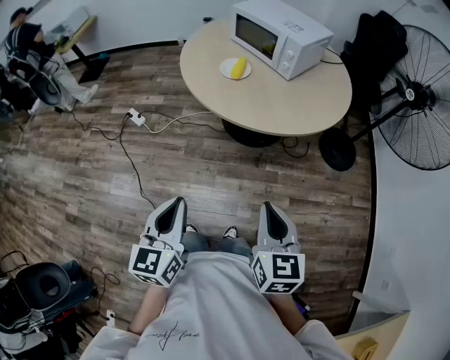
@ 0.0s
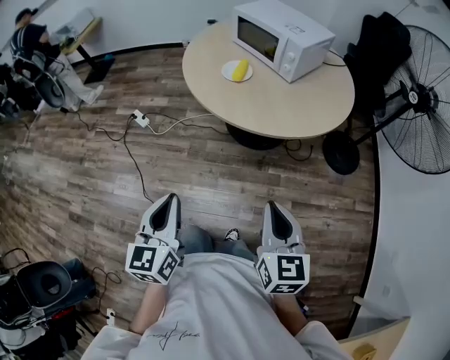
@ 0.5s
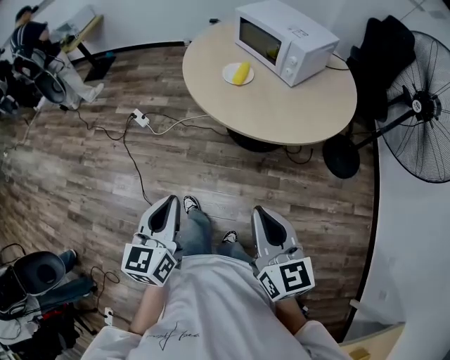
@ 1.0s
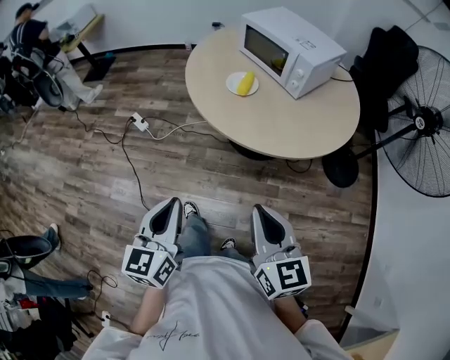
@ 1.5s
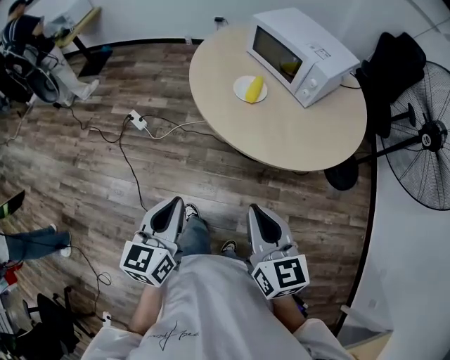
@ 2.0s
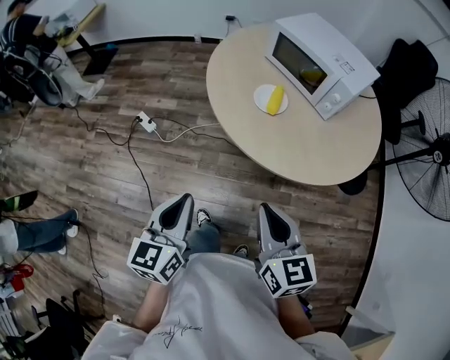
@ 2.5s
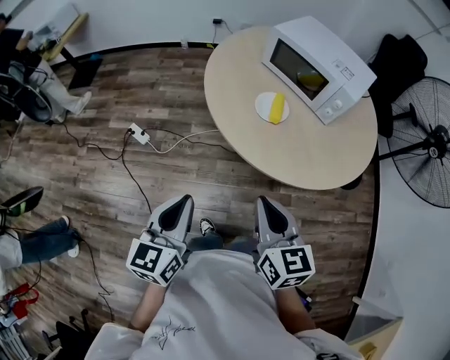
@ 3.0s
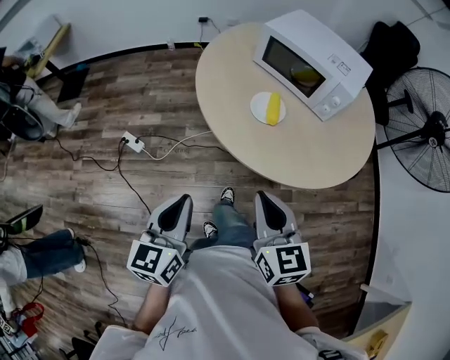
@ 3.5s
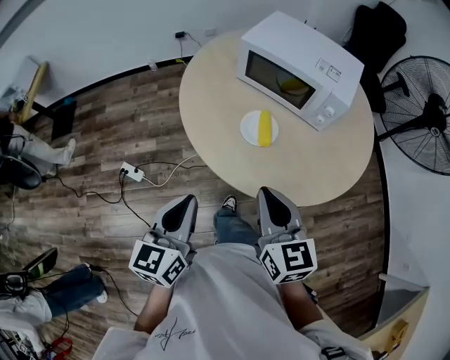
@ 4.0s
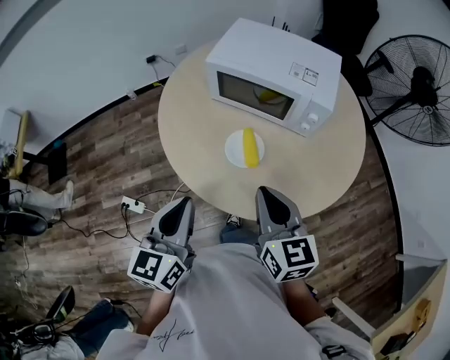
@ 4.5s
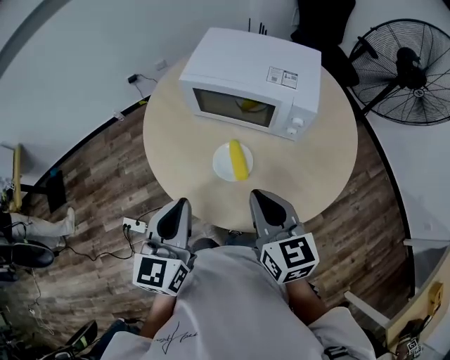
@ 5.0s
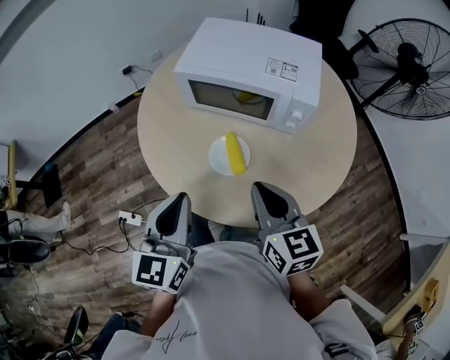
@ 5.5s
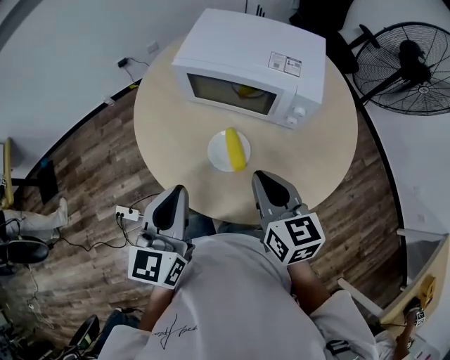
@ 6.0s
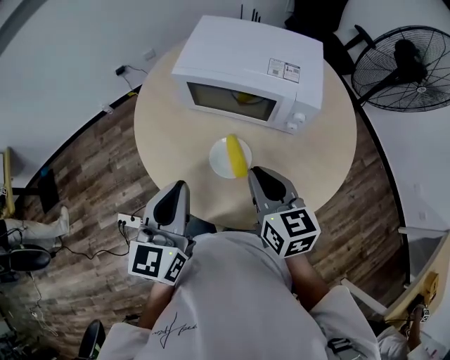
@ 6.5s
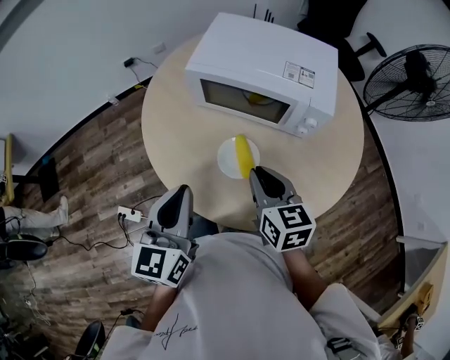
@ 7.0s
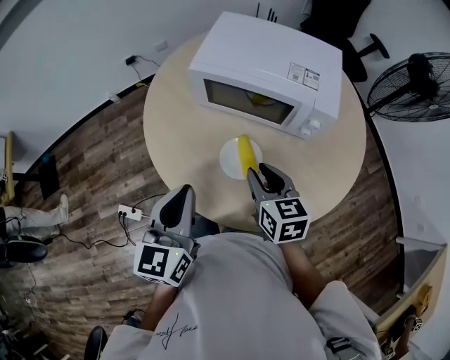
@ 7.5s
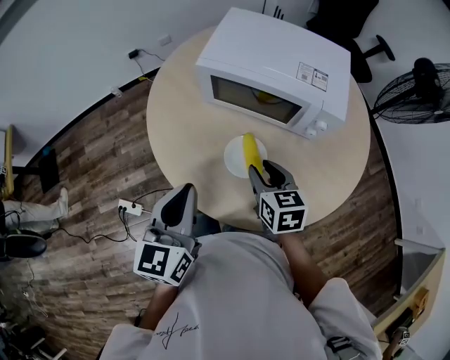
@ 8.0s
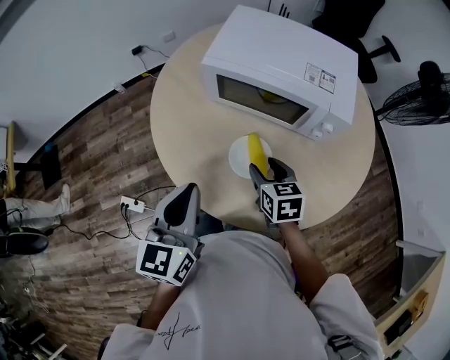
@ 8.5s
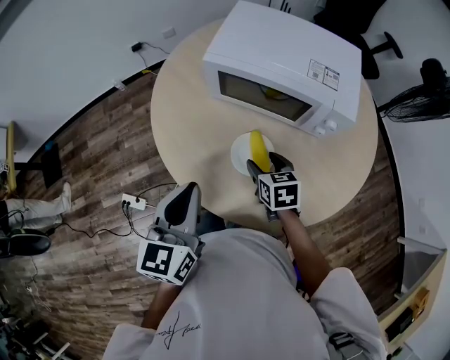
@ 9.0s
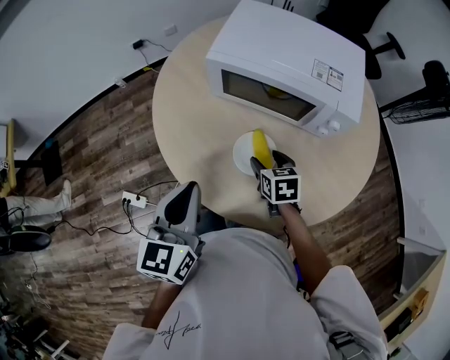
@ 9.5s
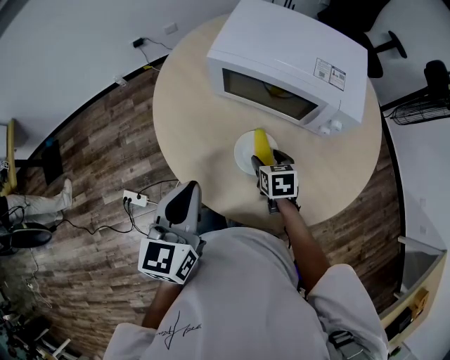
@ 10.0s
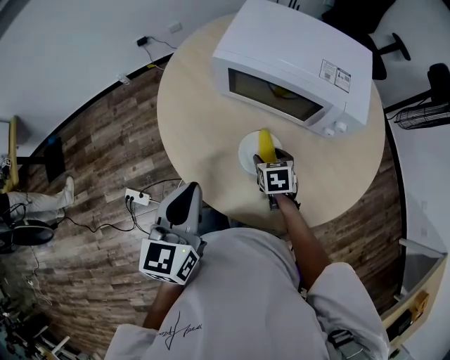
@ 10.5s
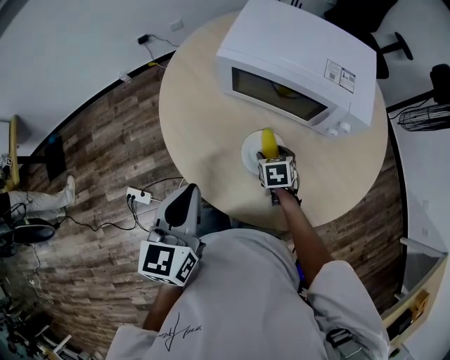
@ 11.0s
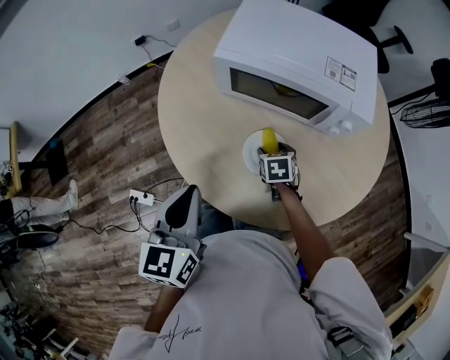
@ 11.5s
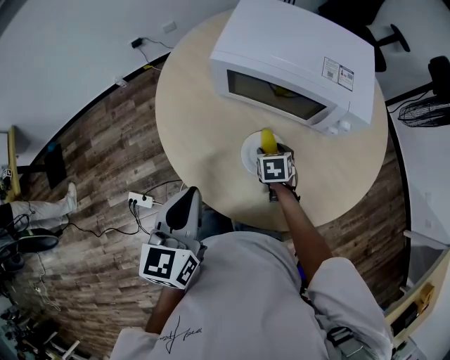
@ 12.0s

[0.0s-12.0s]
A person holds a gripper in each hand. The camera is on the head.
0.0s to 2.0s: The left gripper heads forward, covering about 15 cm. Meanwhile the right gripper shifts approximately 15 cm forward and to the left.
2.0s to 4.0s: The left gripper is displaced forward by some 30 cm, and rotates approximately 20 degrees. Meanwhile the right gripper goes about 30 cm forward and to the left, and swivels some 20 degrees.
4.0s to 6.0s: The two grippers go approximately 20 cm forward.
6.0s to 8.0s: The right gripper goes approximately 10 cm downward and forward, and opens, while the left gripper shifts by about 5 cm.
8.0s to 10.0s: The right gripper moves downward, some 10 cm, and opens up.
10.0s to 12.0s: The right gripper goes about 5 cm downward.

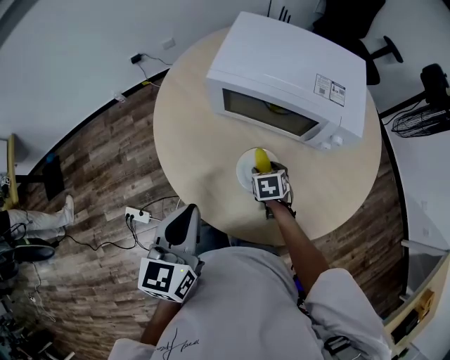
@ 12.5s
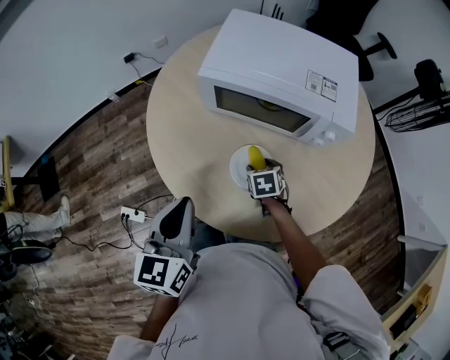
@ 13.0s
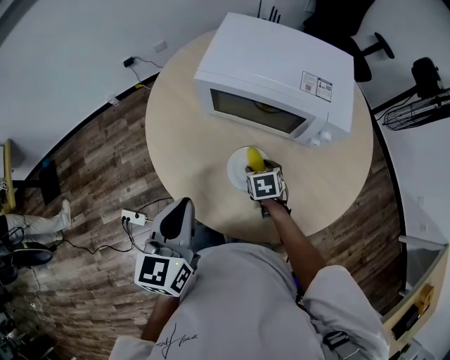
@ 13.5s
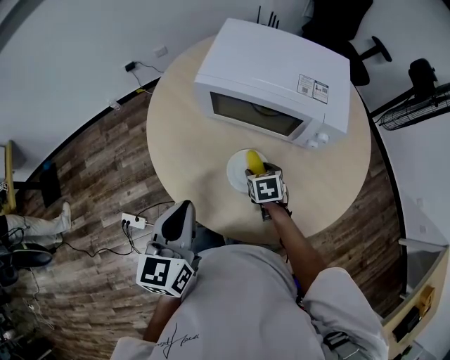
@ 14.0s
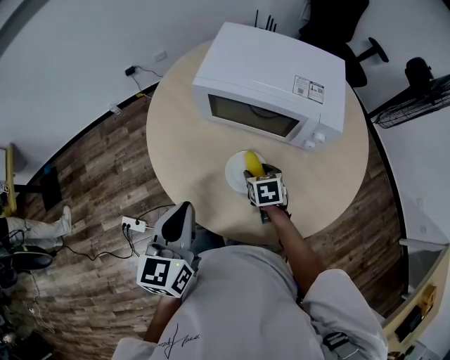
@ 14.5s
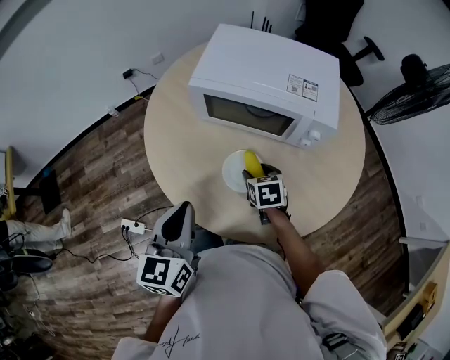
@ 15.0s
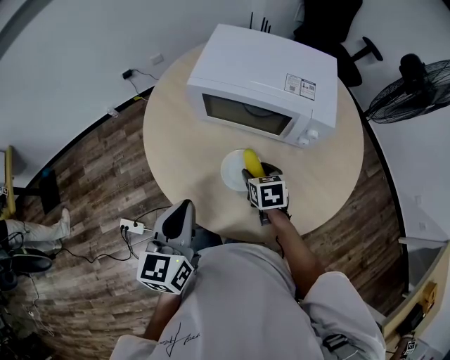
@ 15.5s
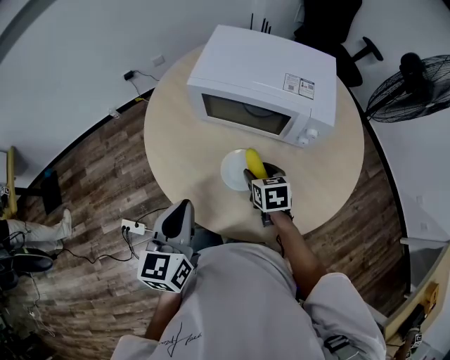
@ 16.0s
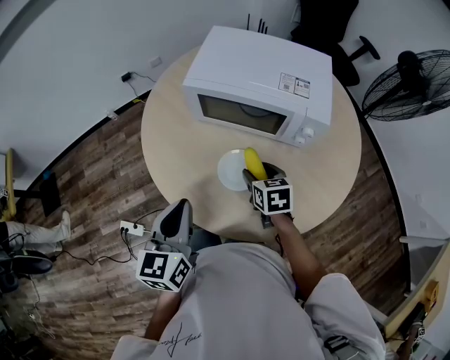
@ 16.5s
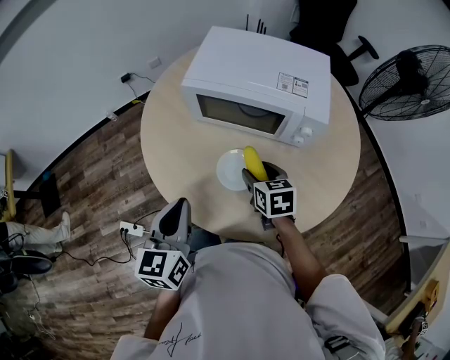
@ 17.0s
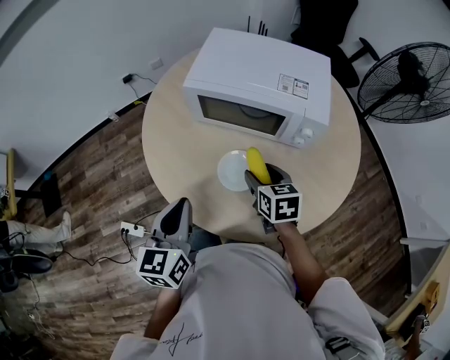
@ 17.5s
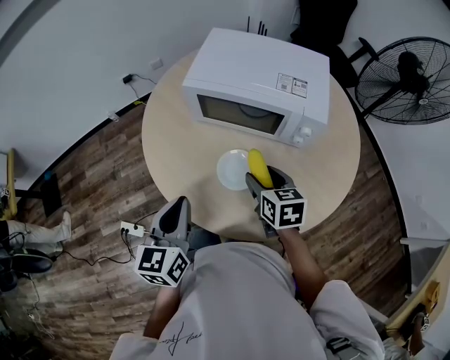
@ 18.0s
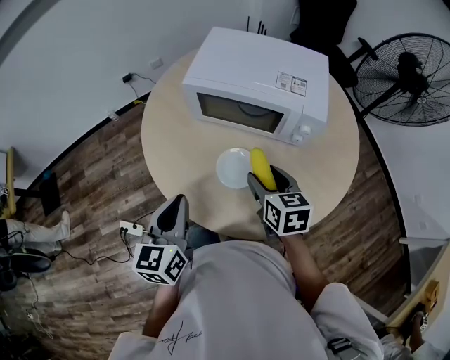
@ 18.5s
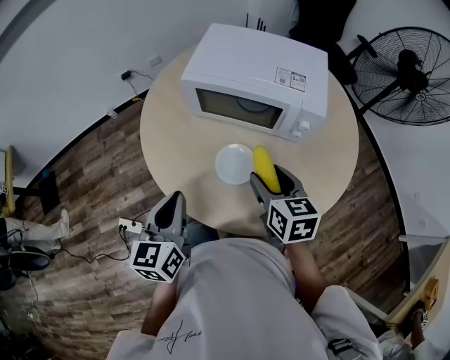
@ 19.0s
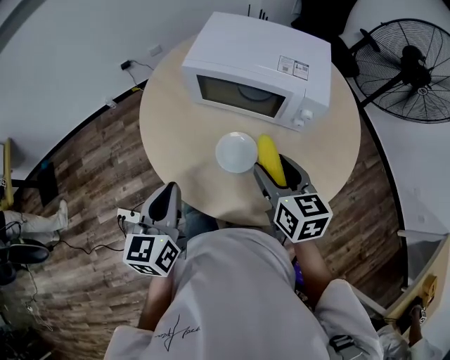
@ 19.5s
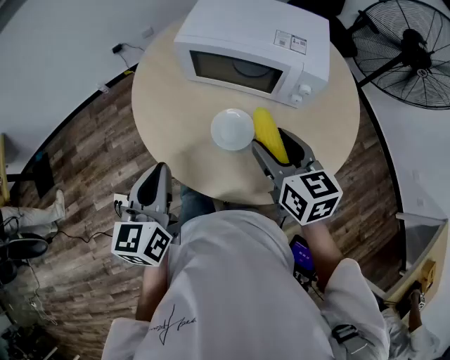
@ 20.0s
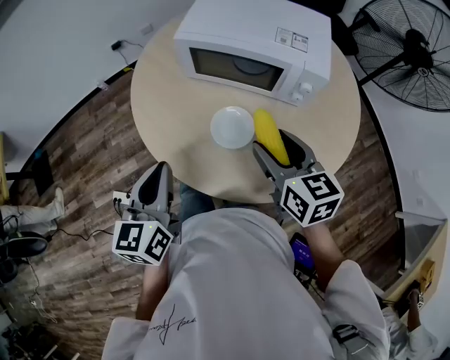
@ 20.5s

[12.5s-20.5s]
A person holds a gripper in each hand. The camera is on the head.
12.5s to 14.5s: The grippers make only small movements.
14.5s to 16.5s: The right gripper shifts approximately 5 cm upward.
16.5s to 18.5s: The right gripper shifts roughly 10 cm upward.
18.5s to 20.5s: The right gripper heads upward, covering some 5 cm.

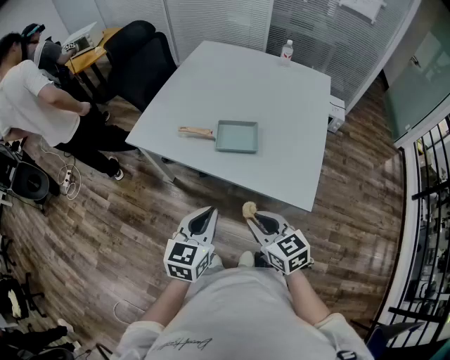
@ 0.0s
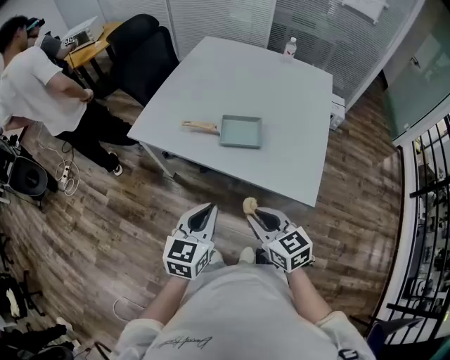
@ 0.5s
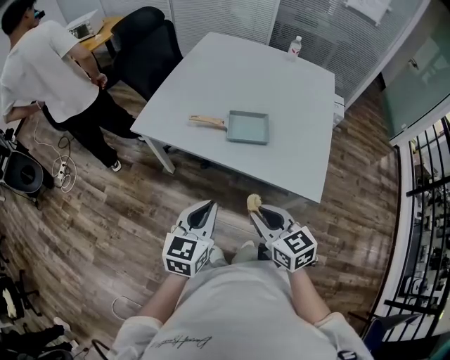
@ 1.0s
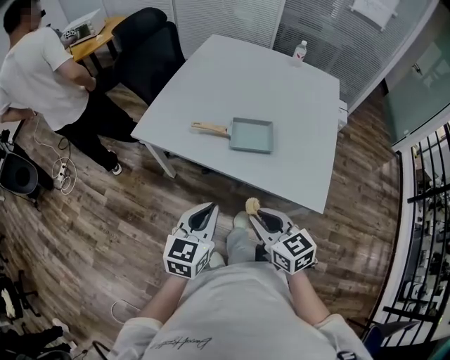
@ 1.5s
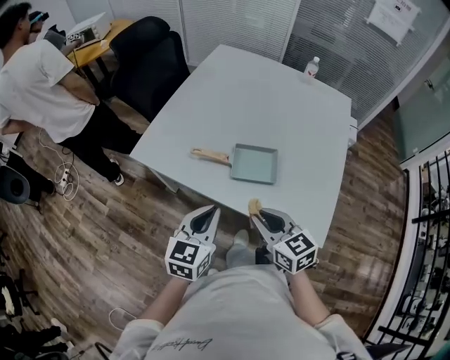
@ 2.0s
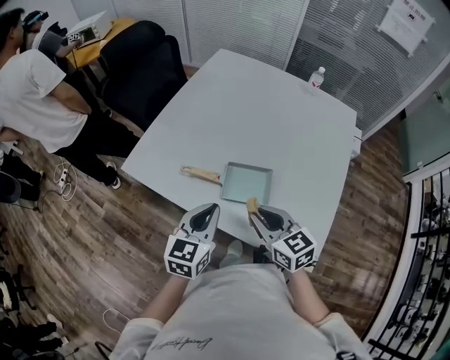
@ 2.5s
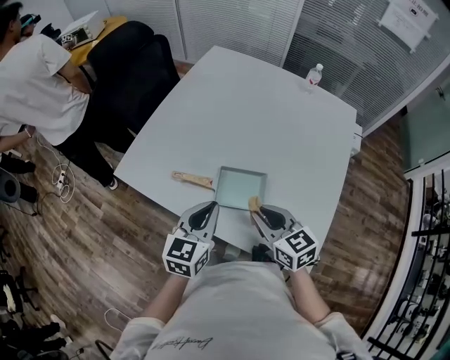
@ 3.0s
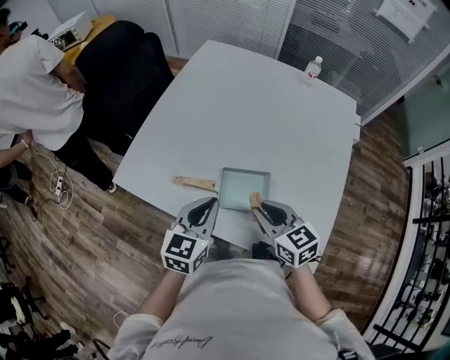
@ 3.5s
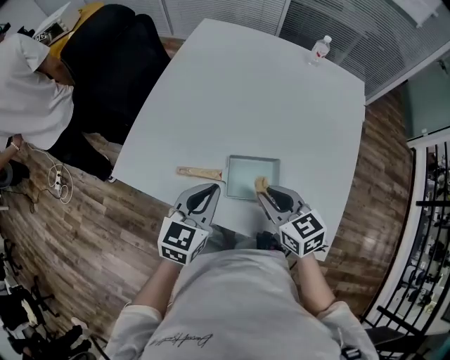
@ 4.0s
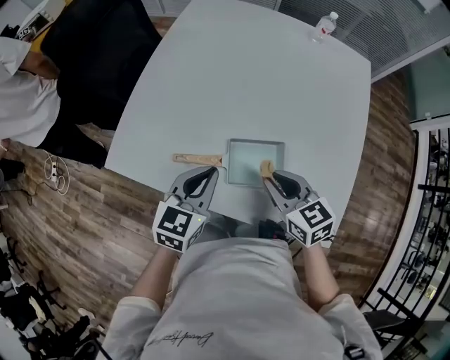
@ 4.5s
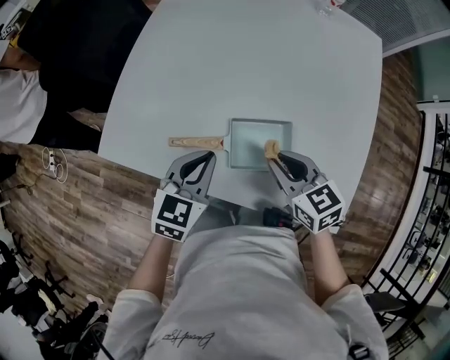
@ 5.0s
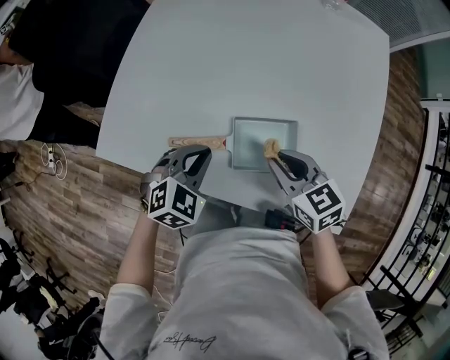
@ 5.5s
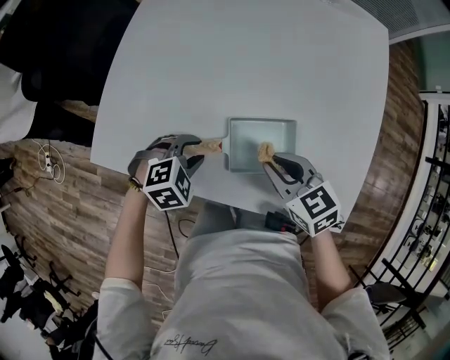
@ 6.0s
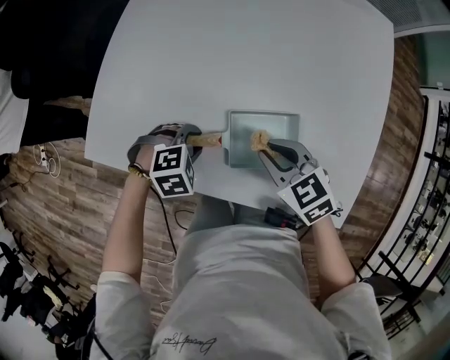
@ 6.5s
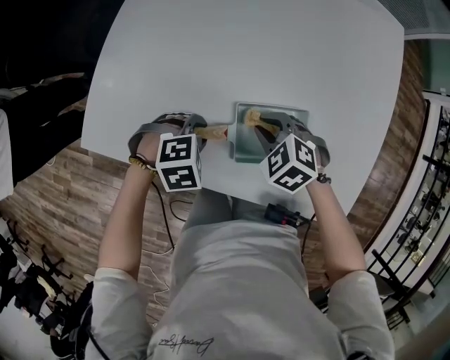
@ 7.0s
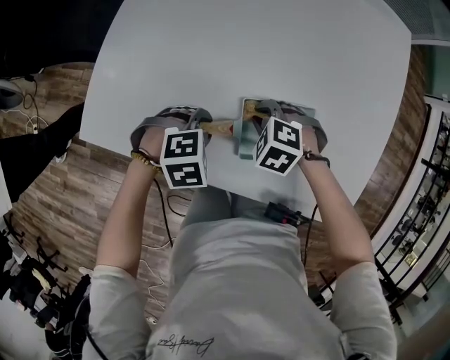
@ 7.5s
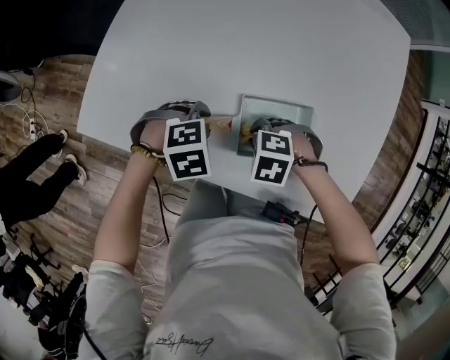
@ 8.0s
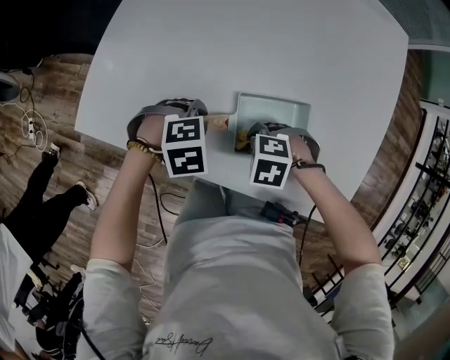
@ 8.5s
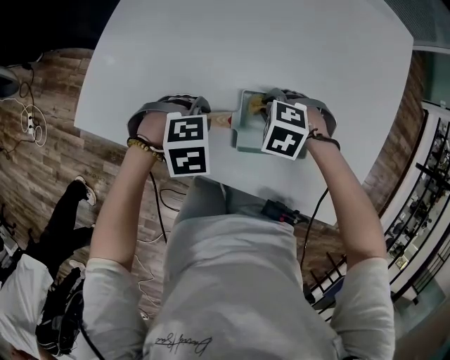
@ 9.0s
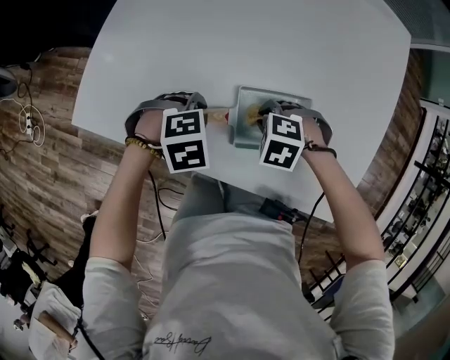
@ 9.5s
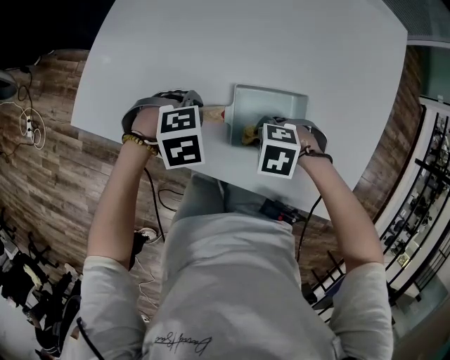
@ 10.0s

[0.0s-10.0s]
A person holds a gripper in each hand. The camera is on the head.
0.0s to 2.0s: Both grippers travel together forward, some 15 cm.
2.0s to 4.0s: The grippers both shift forward by roughly 15 cm.
4.0s to 6.0s: The right gripper travels downward by roughly 5 cm; the left gripper shifts roughly 15 cm downward, points its fingers about 40 degrees further downward, and opens.
6.0s to 8.0s: The right gripper shifts approximately 10 cm downward, and angles its fingers downward, by approximately 40 degrees.
